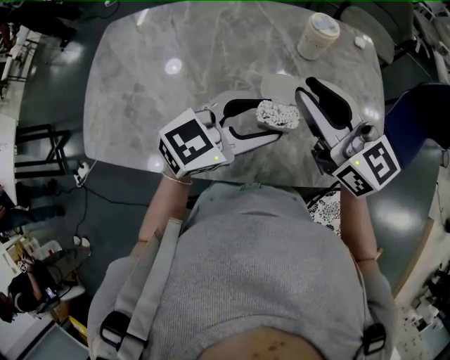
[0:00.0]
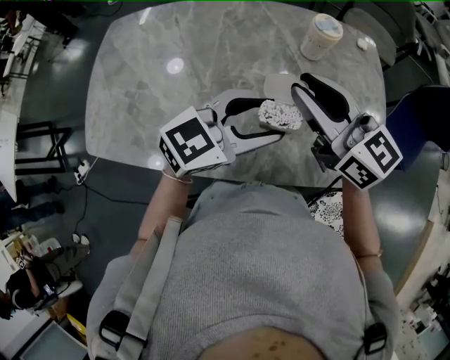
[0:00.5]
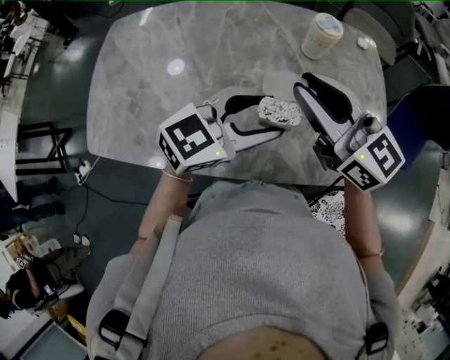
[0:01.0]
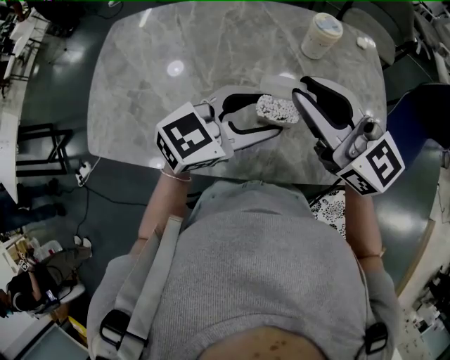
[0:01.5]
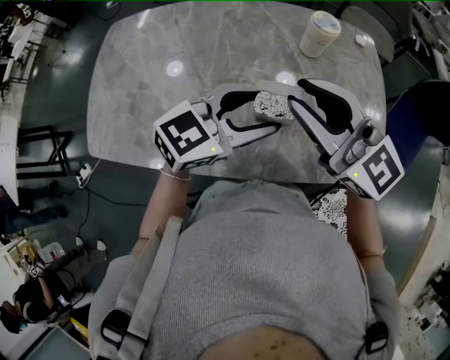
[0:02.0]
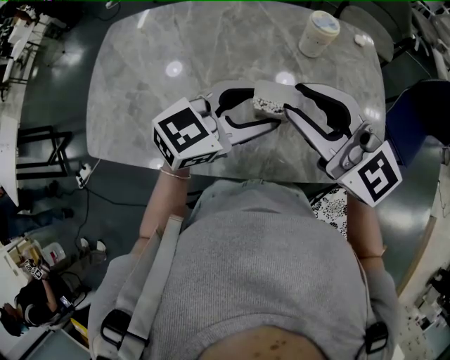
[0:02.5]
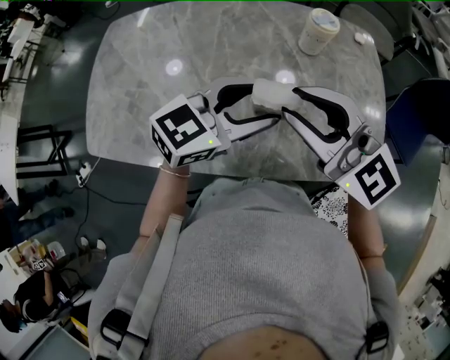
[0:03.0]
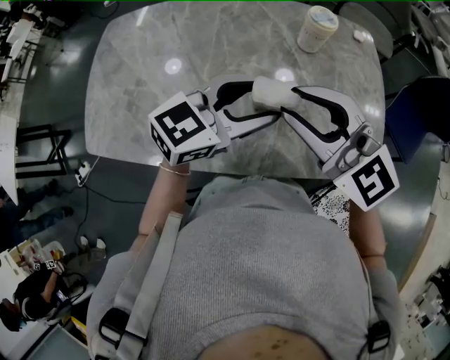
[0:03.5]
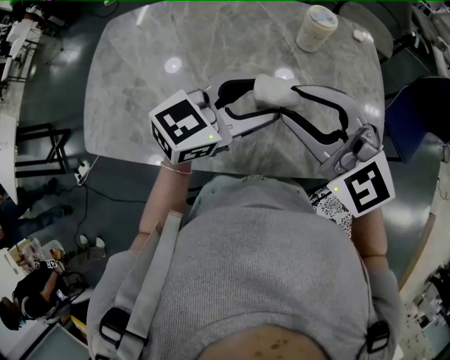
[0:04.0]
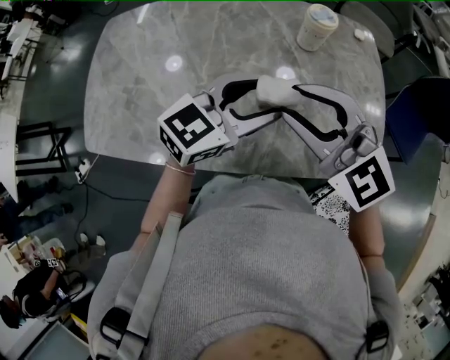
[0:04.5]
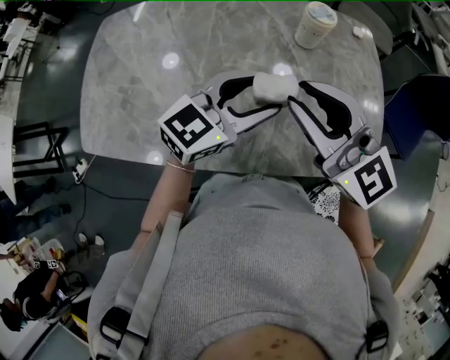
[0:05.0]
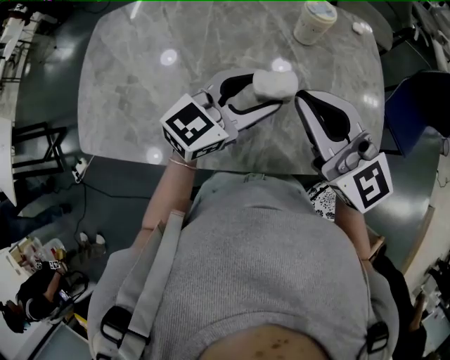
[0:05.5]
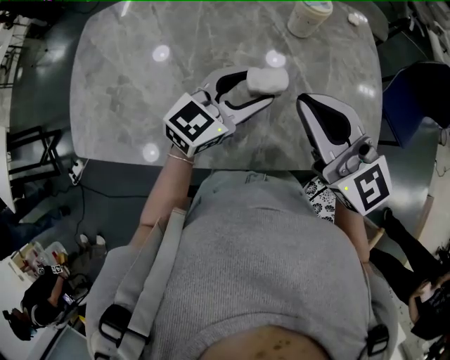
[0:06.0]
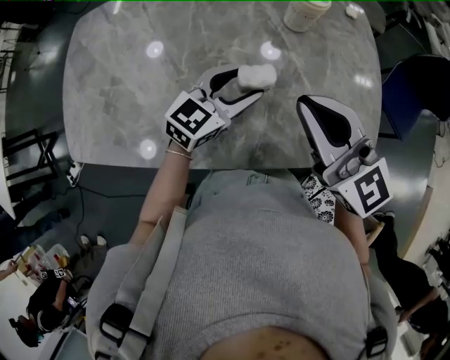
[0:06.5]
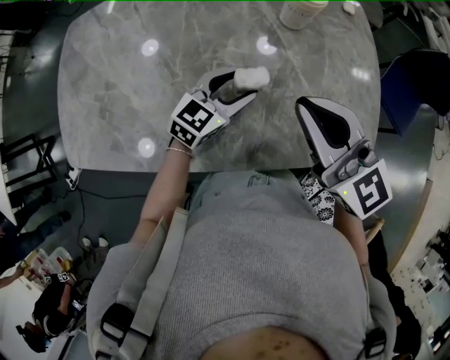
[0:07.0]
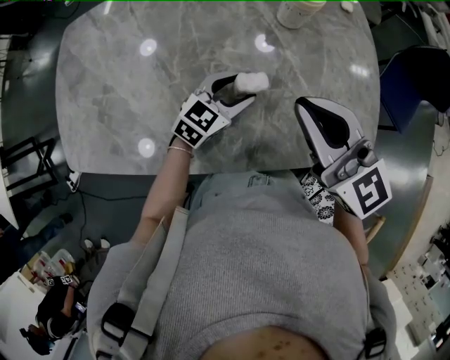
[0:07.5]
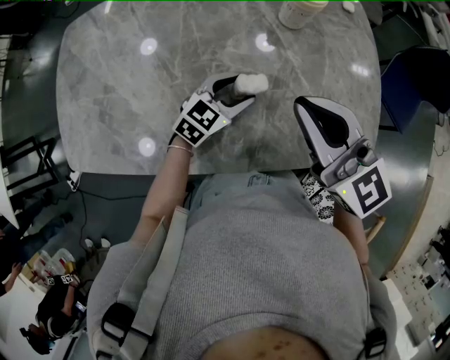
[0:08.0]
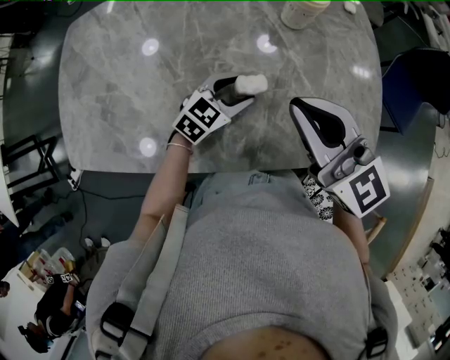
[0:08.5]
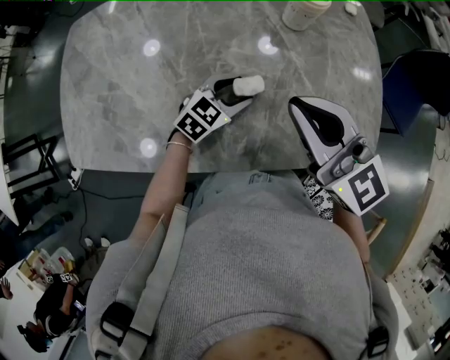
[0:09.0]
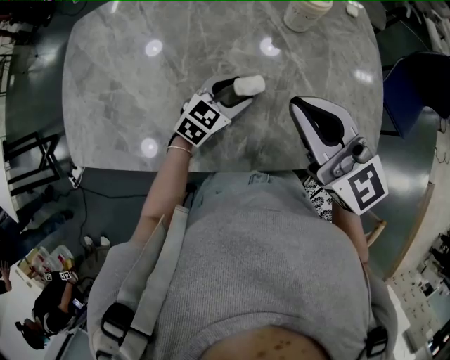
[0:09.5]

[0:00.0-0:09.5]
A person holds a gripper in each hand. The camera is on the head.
0:00.0 to 0:02.0: The right gripper shifts by about 5 cm.
0:02.0 to 0:04.0: The right gripper turns by about 30 degrees.
0:04.0 to 0:05.5: The right gripper swivels roughly 30 degrees, and closes.
0:05.5 to 0:07.5: The left gripper moves downward, some 15 cm.
0:07.5 to 0:09.5: There are only small adjustments of the grippers.

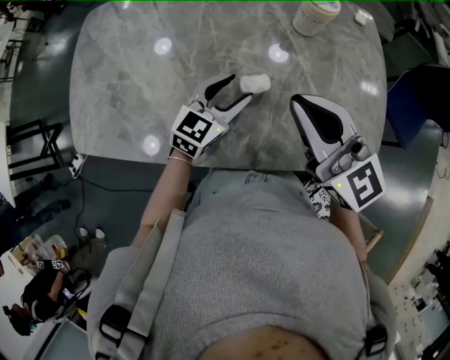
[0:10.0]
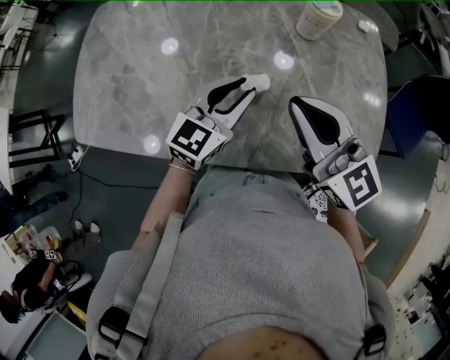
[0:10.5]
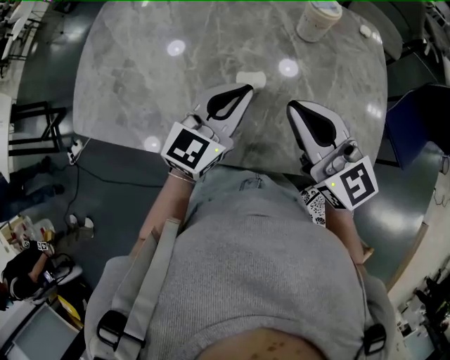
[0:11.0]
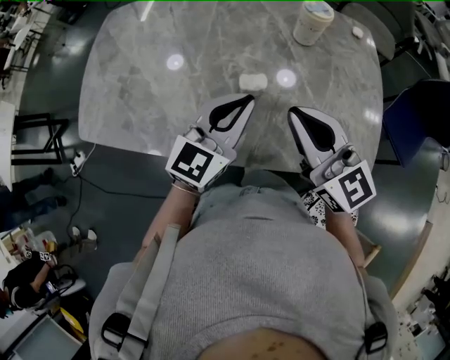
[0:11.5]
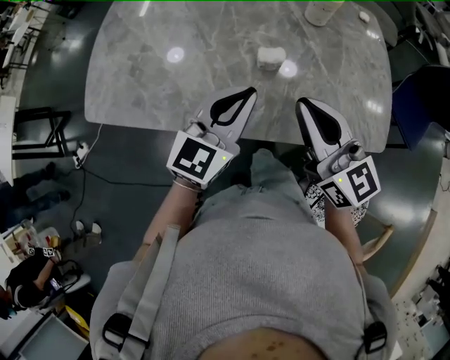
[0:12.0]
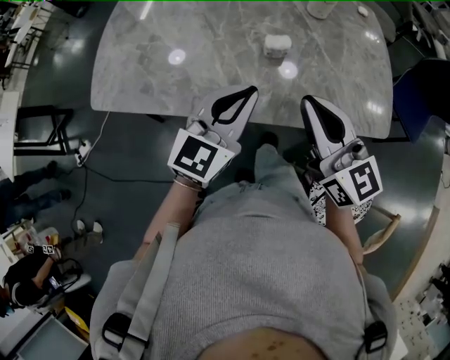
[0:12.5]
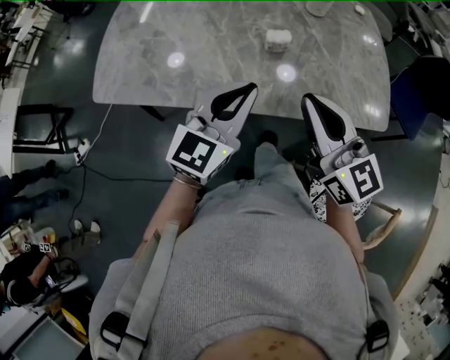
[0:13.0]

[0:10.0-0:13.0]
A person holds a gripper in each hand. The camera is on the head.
0:10.0 to 0:11.5: The right gripper ends up roughly 5 cm from where it was, while the left gripper travels upward and backward by roughly 15 cm, and closes up.
0:11.5 to 0:13.0: The left gripper goes roughly 15 cm backward and to the left. The right gripper heads backward, covering some 10 cm.

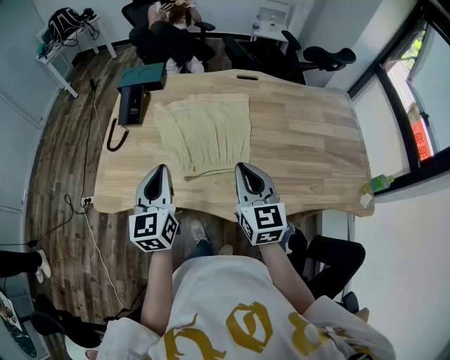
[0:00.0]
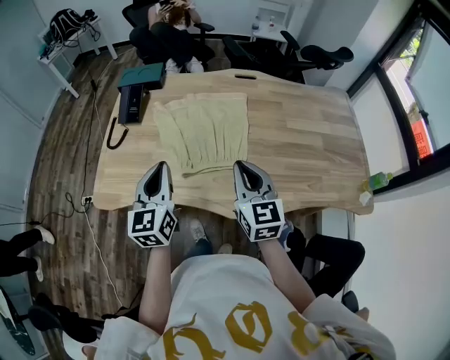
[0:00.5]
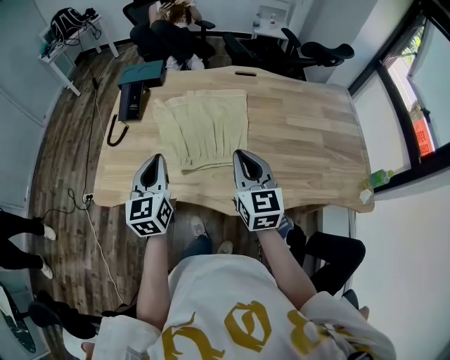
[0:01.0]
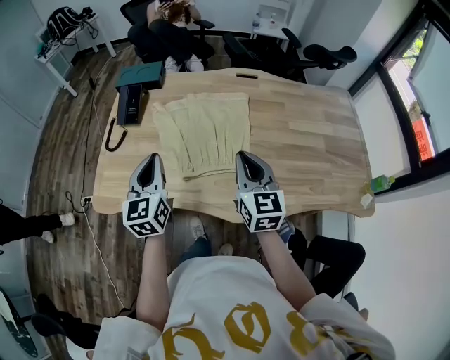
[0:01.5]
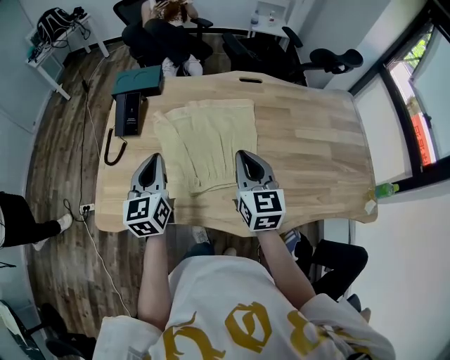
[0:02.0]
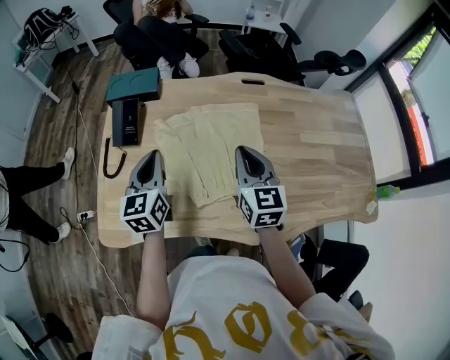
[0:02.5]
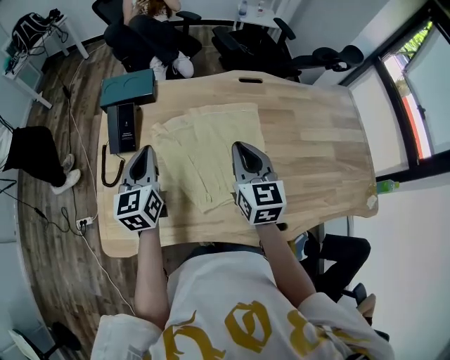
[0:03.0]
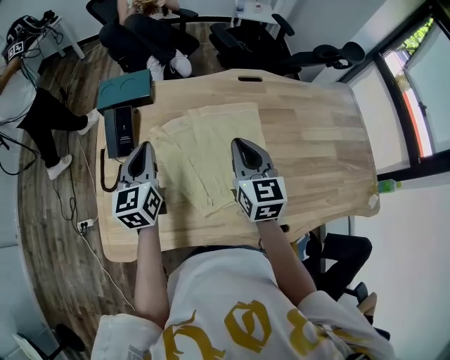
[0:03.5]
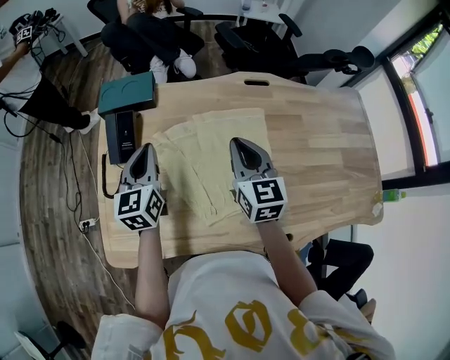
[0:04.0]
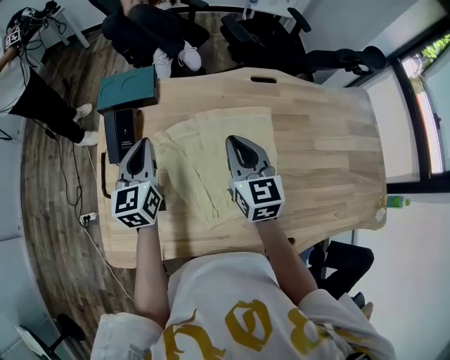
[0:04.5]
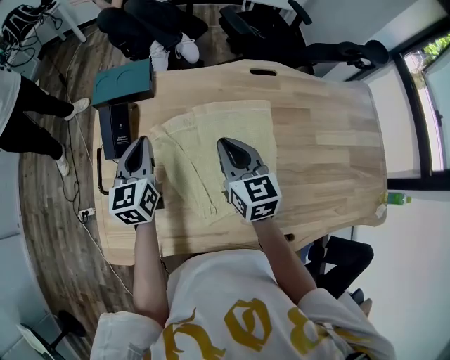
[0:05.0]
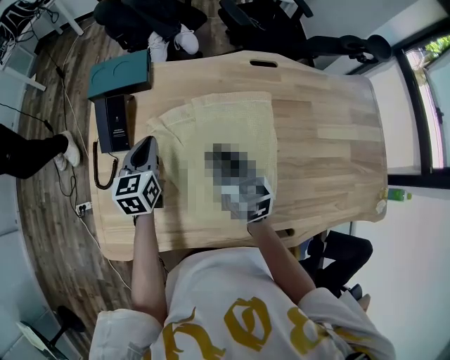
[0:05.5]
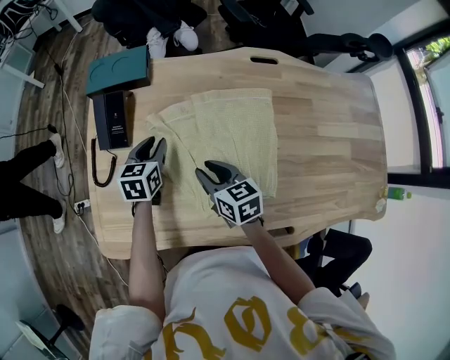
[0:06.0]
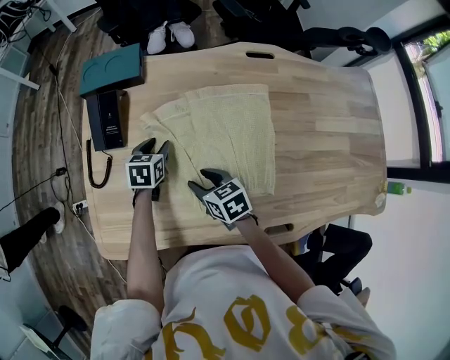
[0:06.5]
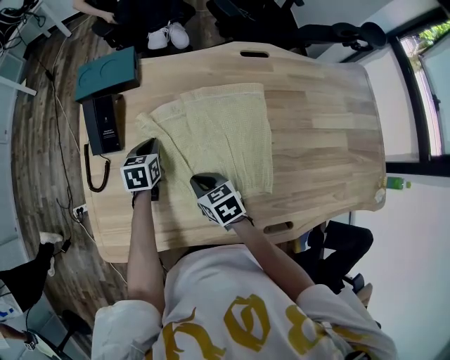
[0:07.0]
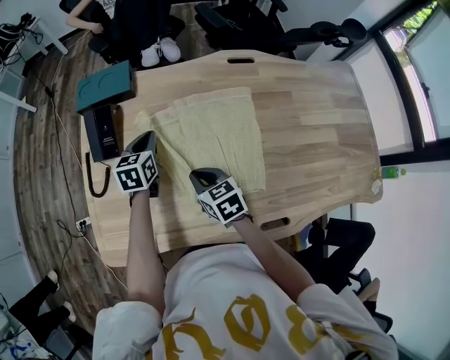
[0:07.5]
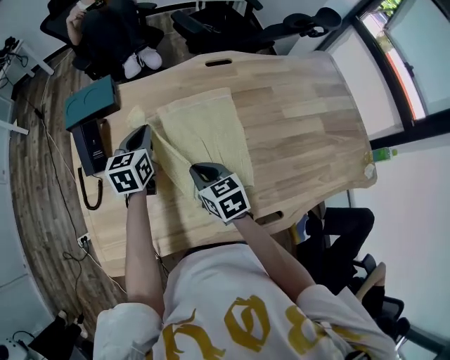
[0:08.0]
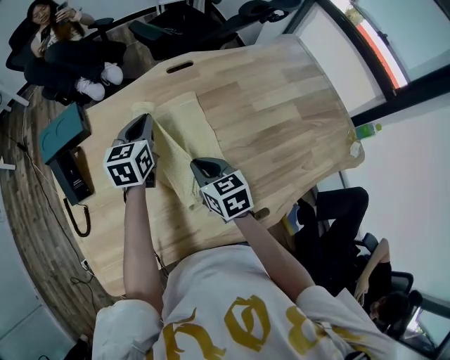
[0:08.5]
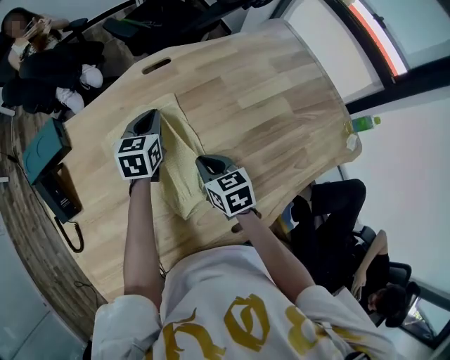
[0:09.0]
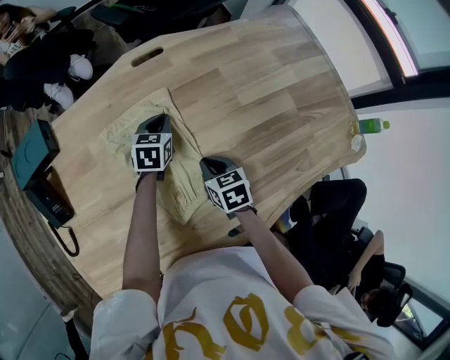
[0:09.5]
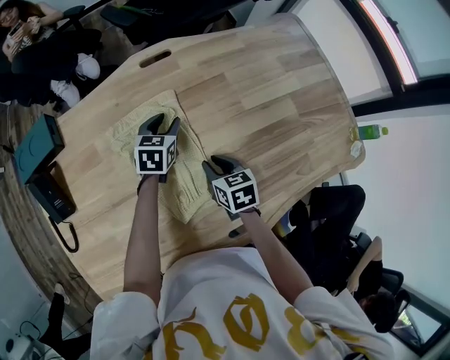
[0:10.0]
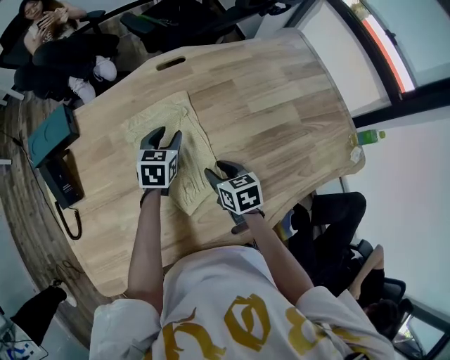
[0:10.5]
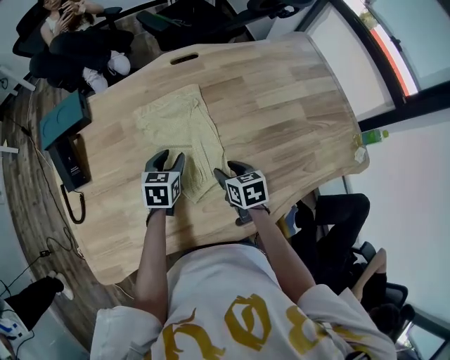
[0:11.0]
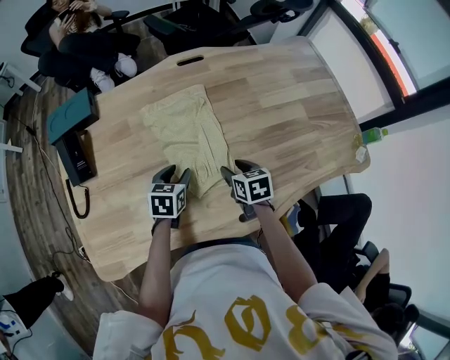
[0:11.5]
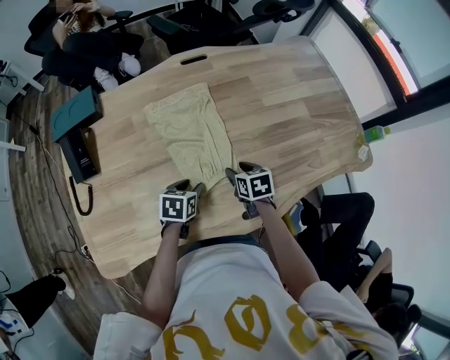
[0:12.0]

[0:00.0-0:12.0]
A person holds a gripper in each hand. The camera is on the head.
0:00.0 to 0:02.0: The grippers both shift forward by about 10 cm.
0:02.0 to 0:04.0: The two grippers go about 15 cm forward.
0:04.0 to 0:06.0: The right gripper moves downward and to the left, roughly 20 cm, swivels approximately 30 degrees, and opens. Meanwhile the left gripper is displaced downward by some 15 cm, rotates about 30 degrees, and opens its fingers.
0:06.0 to 0:08.0: The left gripper travels upward and to the right by about 10 cm, and closes up, while the right gripper travels downward and back again, approximately 5 cm each way, and closes.
0:08.0 to 0:10.0: Both grippers move to the right and downward, about 25 cm. The right gripper turns by roughly 20 degrees, while the left gripper swivels some 30 degrees, and opens.
0:10.0 to 0:12.0: The right gripper is displaced backward by about 10 cm, and opens up; the left gripper heads backward, covering about 25 cm, and swivels some 20 degrees.

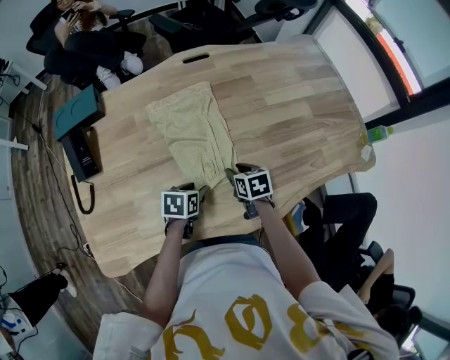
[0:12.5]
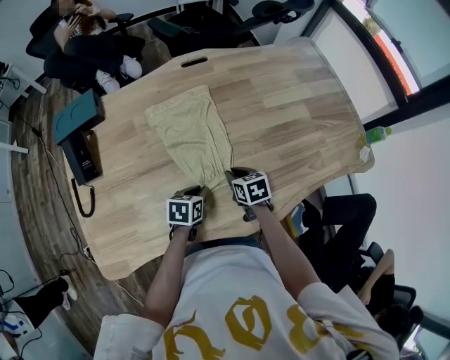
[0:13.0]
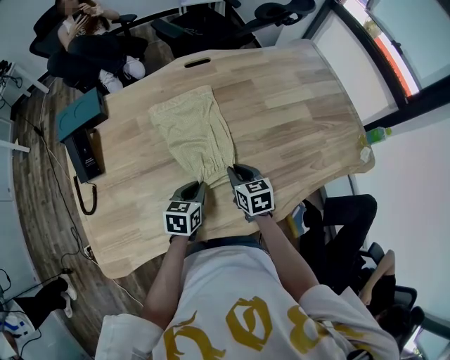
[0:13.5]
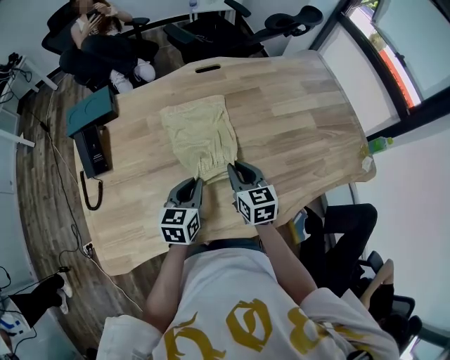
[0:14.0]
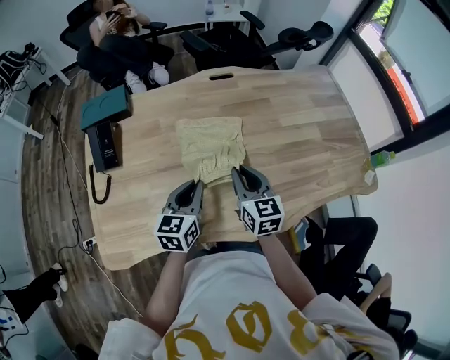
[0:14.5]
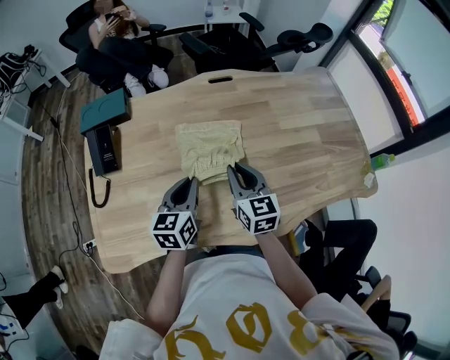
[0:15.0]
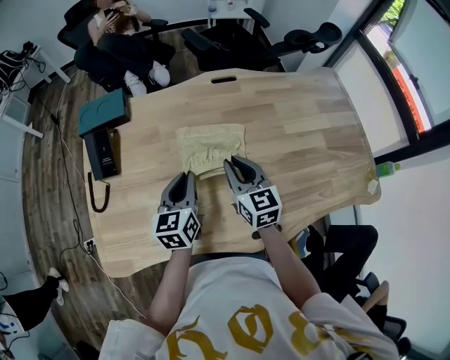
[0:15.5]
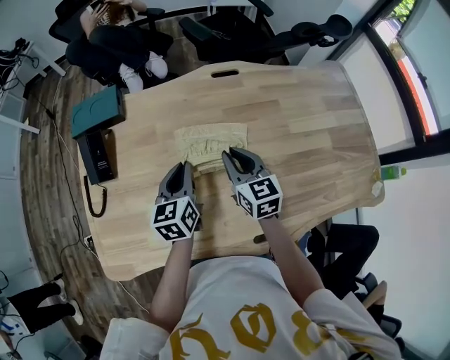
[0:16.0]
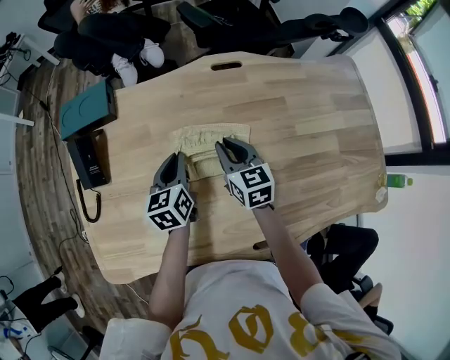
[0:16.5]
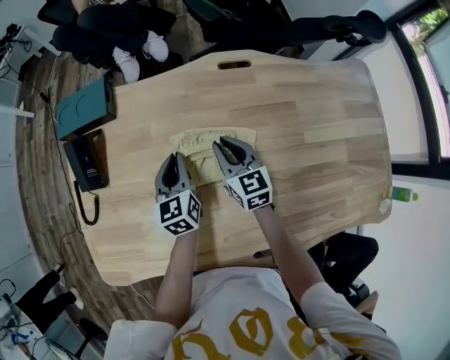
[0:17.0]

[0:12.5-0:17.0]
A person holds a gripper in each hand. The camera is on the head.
0:12.5 to 0:14.5: Both grippers travel together upward, approximately 15 cm. The left gripper tips its fingers upward by approximately 30 degrees, and closes up, while the right gripper tips its fingers upward by some 30 degrees, and closes up.
0:14.5 to 0:17.0: The right gripper heads forward and downward, covering about 20 cm, while the left gripper is displaced forward by roughly 20 cm, and turns by roughly 30 degrees.
